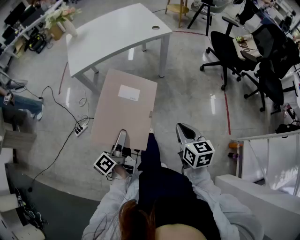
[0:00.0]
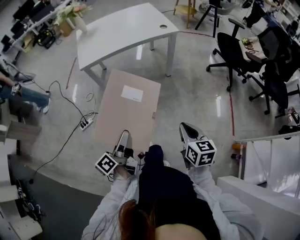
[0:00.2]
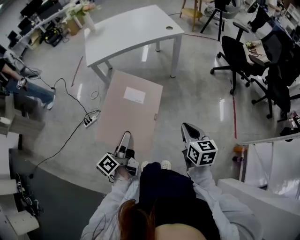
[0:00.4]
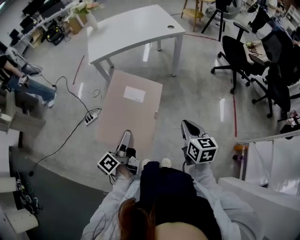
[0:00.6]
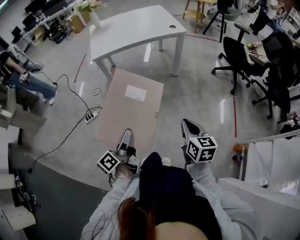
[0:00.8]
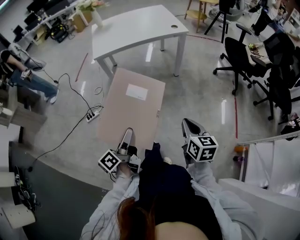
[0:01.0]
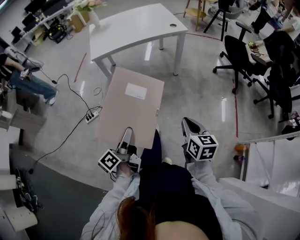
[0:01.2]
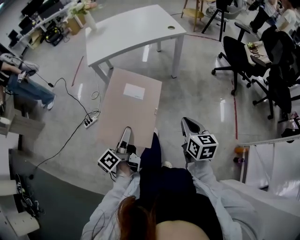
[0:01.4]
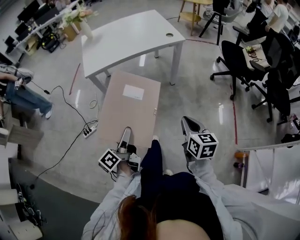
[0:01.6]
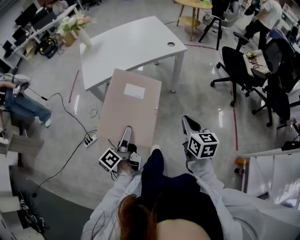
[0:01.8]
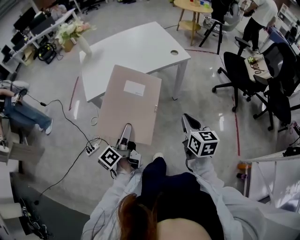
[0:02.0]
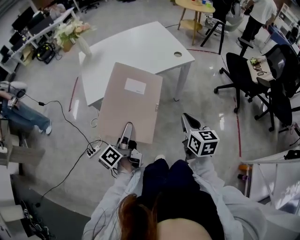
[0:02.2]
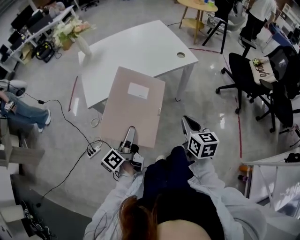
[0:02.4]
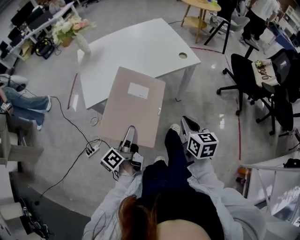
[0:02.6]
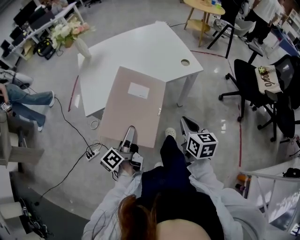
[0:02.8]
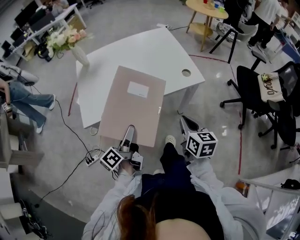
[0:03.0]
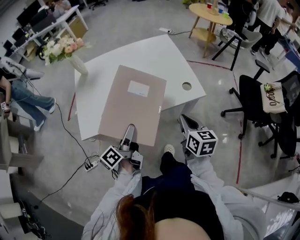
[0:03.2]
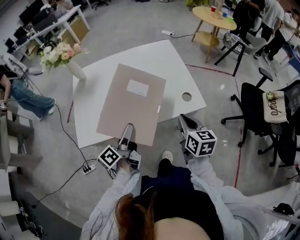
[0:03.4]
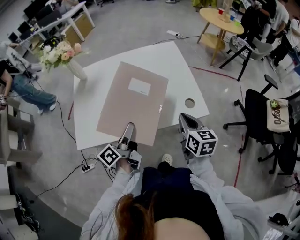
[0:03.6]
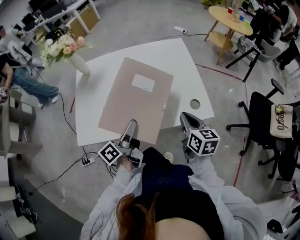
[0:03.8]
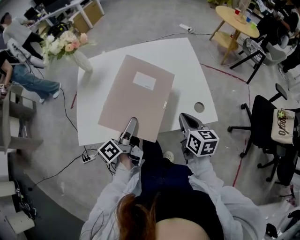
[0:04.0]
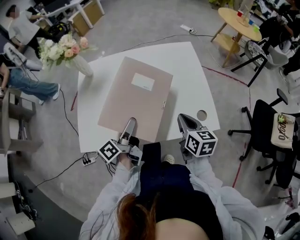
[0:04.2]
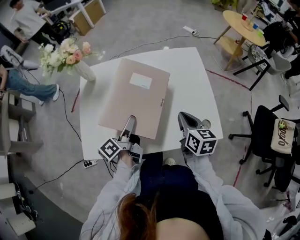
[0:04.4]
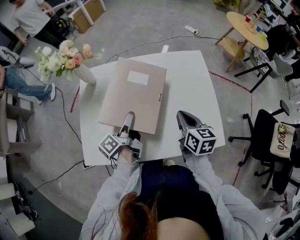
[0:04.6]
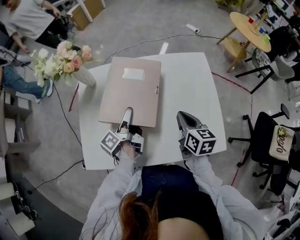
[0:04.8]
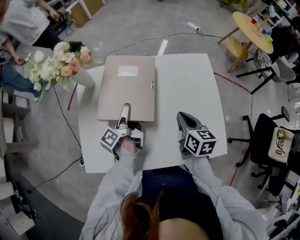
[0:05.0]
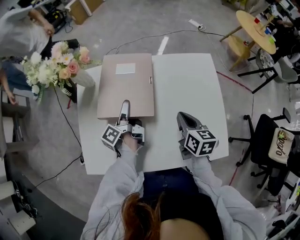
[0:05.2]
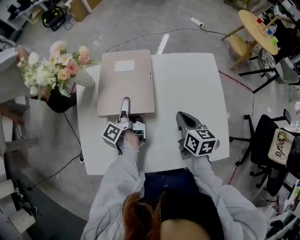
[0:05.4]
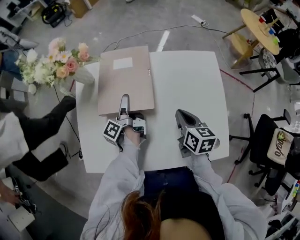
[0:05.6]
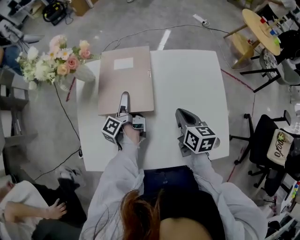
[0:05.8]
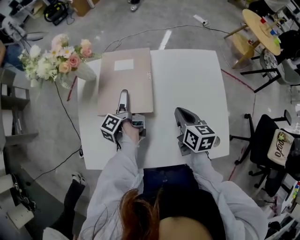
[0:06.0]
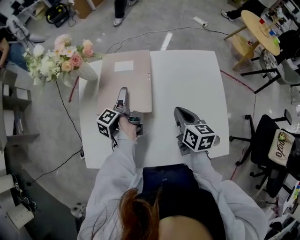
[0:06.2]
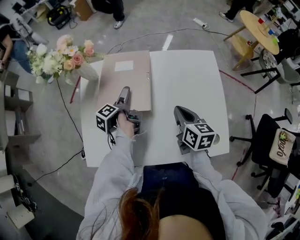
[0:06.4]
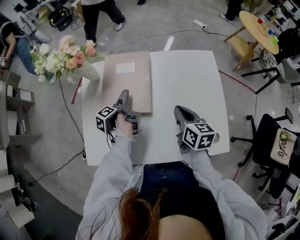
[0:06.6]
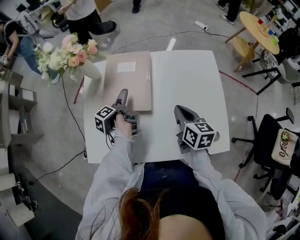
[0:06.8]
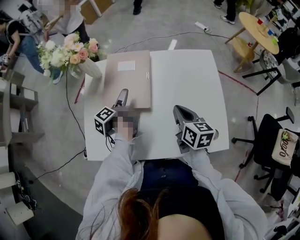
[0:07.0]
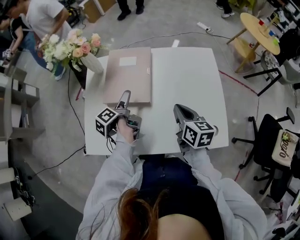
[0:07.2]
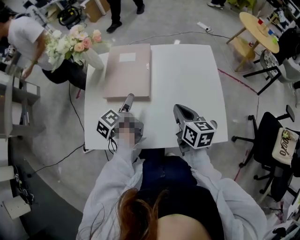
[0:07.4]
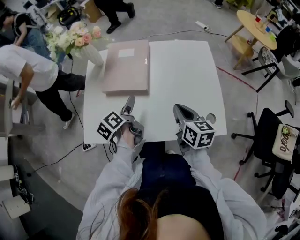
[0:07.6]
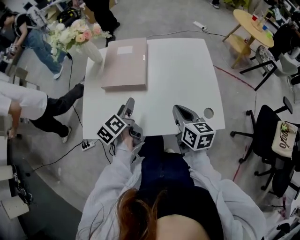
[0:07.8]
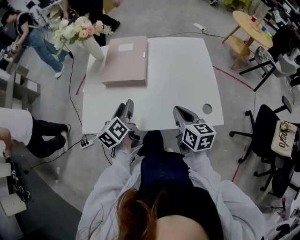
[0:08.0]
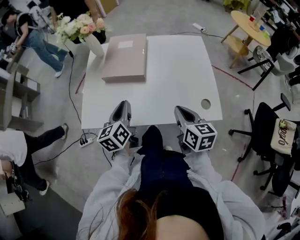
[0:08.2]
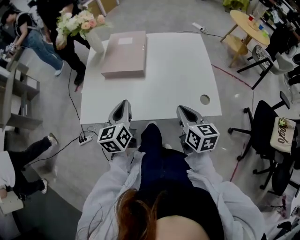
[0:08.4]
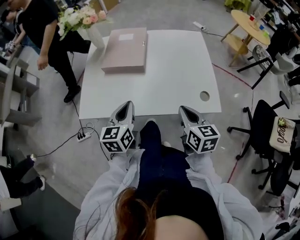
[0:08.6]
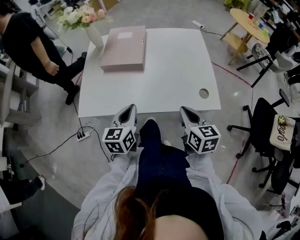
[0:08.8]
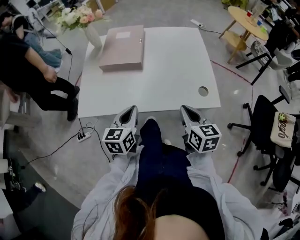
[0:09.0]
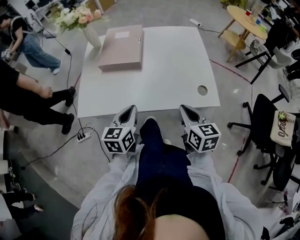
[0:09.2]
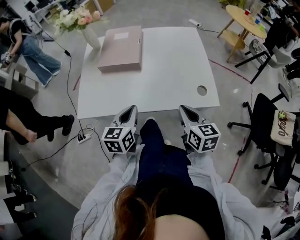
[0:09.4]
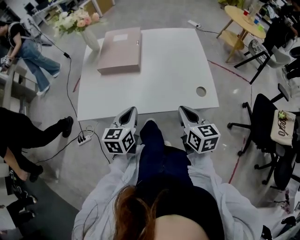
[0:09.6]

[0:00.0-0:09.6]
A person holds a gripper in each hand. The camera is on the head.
0:00.0 to 0:01.6: The right gripper reaches roughly 10 cm backward, then returns. Meanwhile the left gripper travels backward and back again, approximately 15 cm each way.
0:01.6 to 0:03.2: The two grippers travel together, forward, roughly 50 cm.
0:03.2 to 0:04.8: The grippers both shift forward by approximately 35 cm. The left gripper rotates about 20 degrees.
0:04.8 to 0:06.4: The right gripper shifts by approximately 5 cm; the left gripper heads forward and downward, covering about 10 cm, changes its angle by roughly 30 degrees, and opens its fingers.
0:06.4 to 0:08.0: The left gripper moves backward and upward, about 25 cm, rolls clockwise, seen from behind, by some 50 degrees, and closes, while the right gripper shifts roughly 20 cm backward.
0:08.0 to 0:09.6: The right gripper heads backward, covering some 10 cm. The left gripper goes about 15 cm backward and to the right, changes its angle by about 30 degrees, and closes.

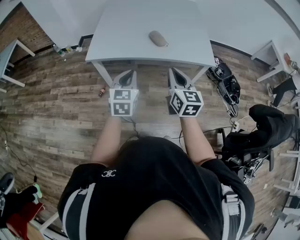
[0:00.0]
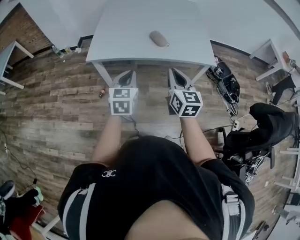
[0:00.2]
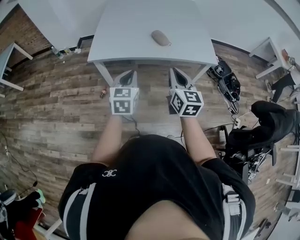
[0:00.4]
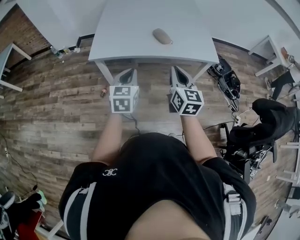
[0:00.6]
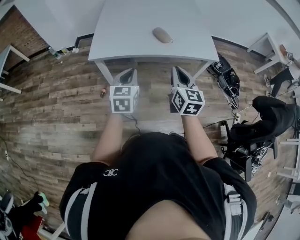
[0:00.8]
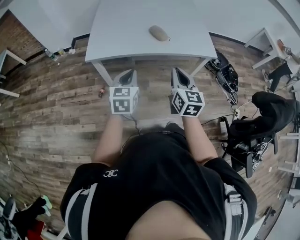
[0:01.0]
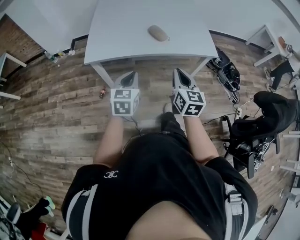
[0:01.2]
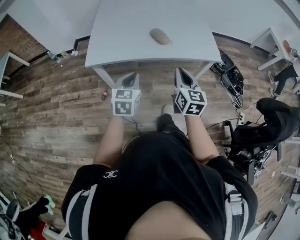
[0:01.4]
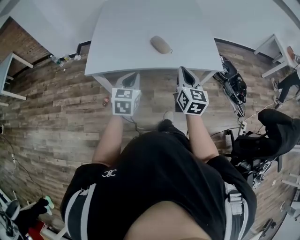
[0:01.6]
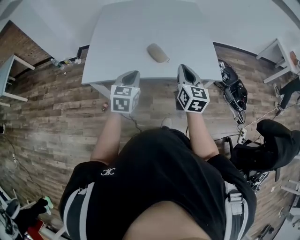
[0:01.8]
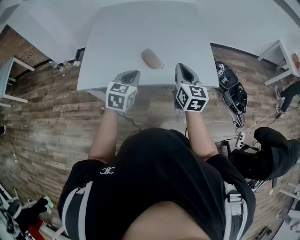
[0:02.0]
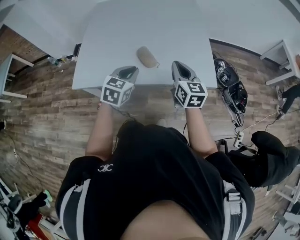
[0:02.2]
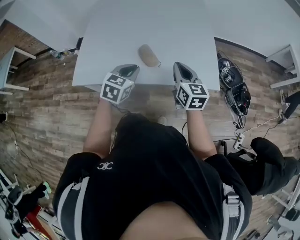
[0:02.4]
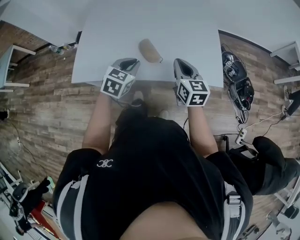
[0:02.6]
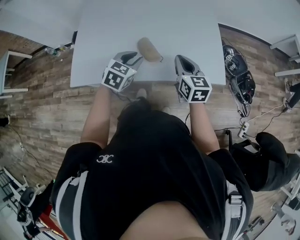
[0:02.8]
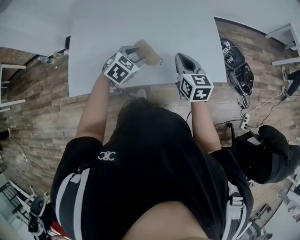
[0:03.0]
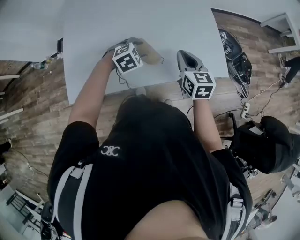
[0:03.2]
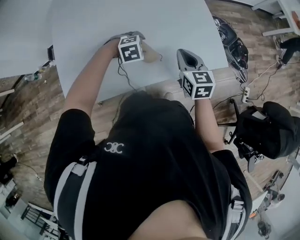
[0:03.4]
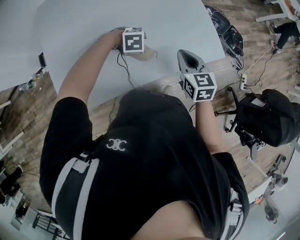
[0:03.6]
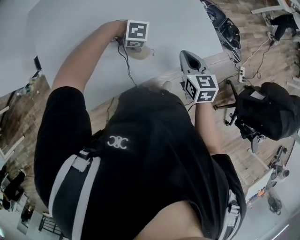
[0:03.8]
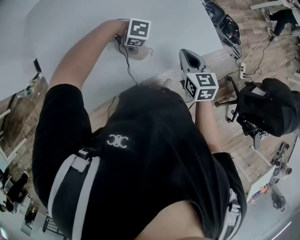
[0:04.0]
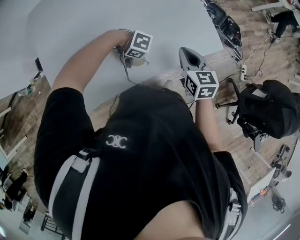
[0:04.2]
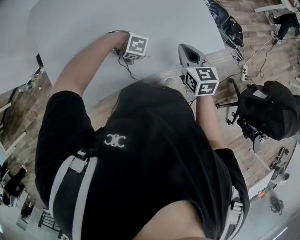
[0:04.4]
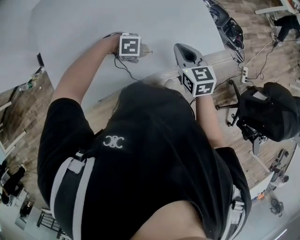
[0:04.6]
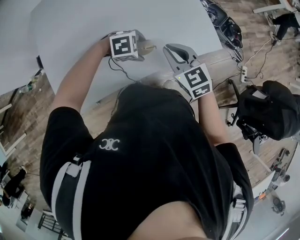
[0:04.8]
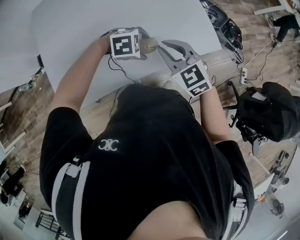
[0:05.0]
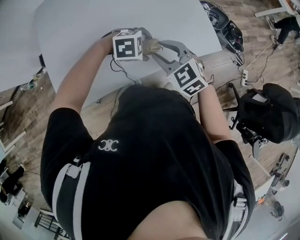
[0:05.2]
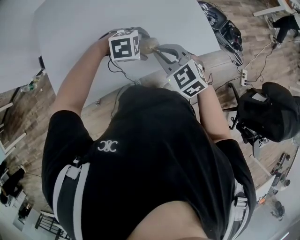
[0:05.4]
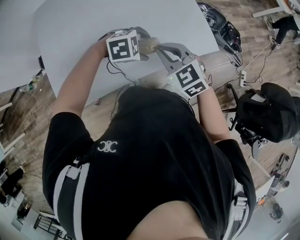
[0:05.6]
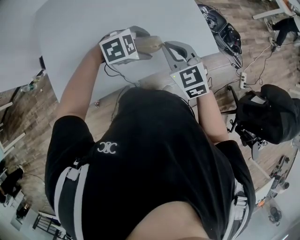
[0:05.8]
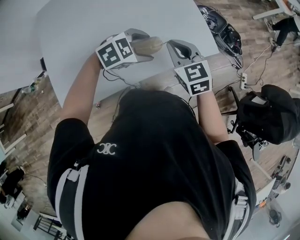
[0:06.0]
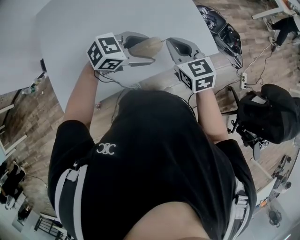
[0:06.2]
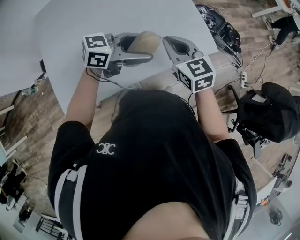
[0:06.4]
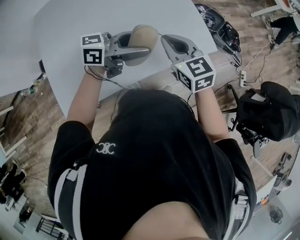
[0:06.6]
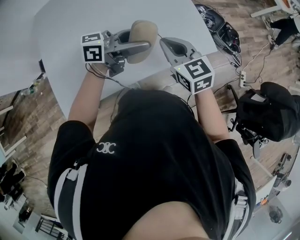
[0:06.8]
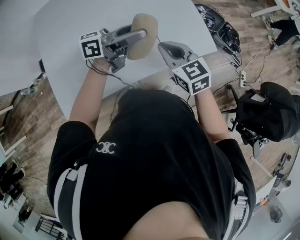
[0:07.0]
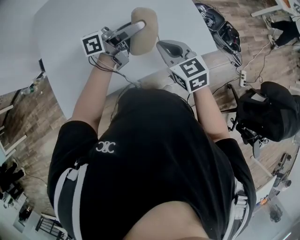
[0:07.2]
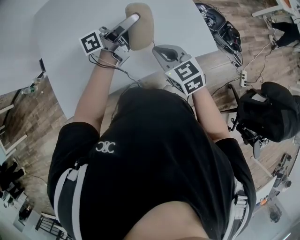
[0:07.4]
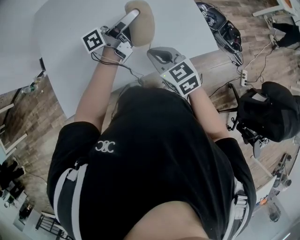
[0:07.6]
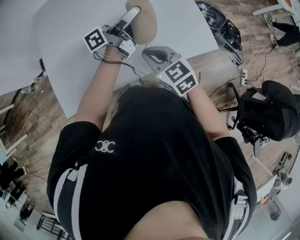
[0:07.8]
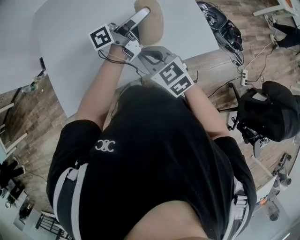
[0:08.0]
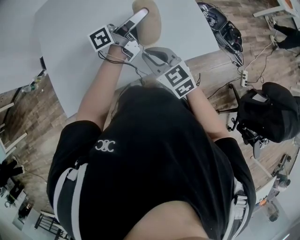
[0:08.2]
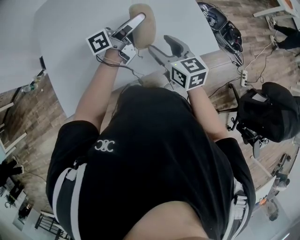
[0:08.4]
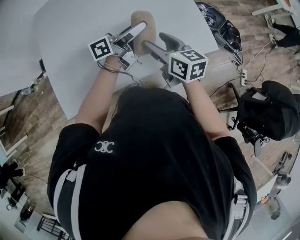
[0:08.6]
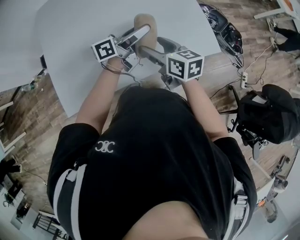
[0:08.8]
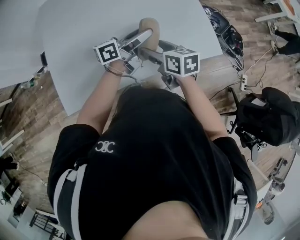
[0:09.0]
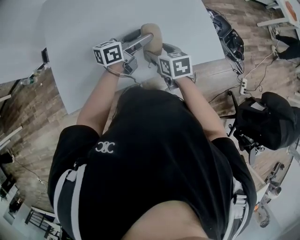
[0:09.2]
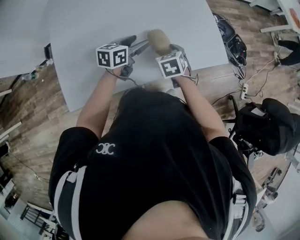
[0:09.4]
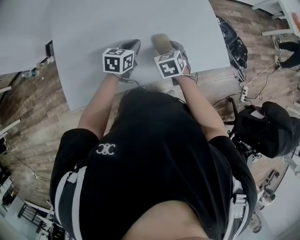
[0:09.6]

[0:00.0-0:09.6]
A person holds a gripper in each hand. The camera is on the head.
0:00.0 to 0:01.6: The grippers both shift forward by some 15 cm.
0:01.6 to 0:03.2: The two grippers go roughly 35 cm forward. The left gripper tips its fingers downward by some 40 degrees, and opens up.
0:03.2 to 0:04.8: The left gripper moves roughly 10 cm downward and comes back, changes its angle by roughly 40 degrees, and opens its fingers.
0:04.8 to 0:06.4: The left gripper travels upward by about 20 cm, and tips its fingers upward by about 50 degrees, while the right gripper shifts some 5 cm upward, and opens, then closes again.
0:06.4 to 0:08.0: The left gripper moves some 10 cm, and points its fingers approximately 30 degrees further upward, while the right gripper changes place by about 10 cm.
0:08.0 to 0:09.6: The right gripper shifts about 15 cm downward and forward, swivels about 30 degrees, and opens up; the left gripper moves downward and to the left, some 25 cm, points its fingers about 50 degrees further downward, and closes up.

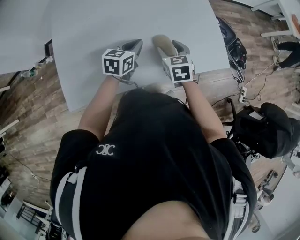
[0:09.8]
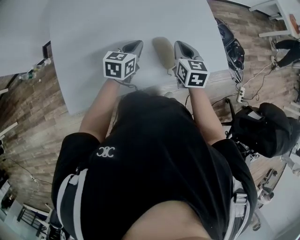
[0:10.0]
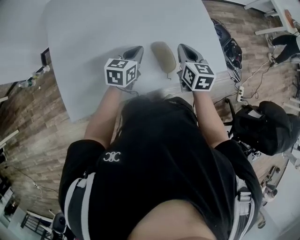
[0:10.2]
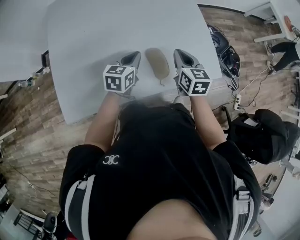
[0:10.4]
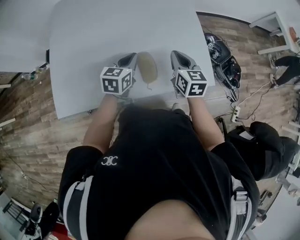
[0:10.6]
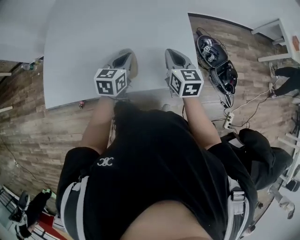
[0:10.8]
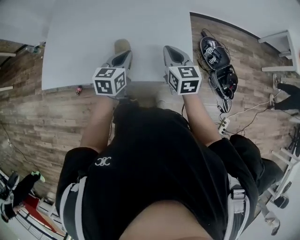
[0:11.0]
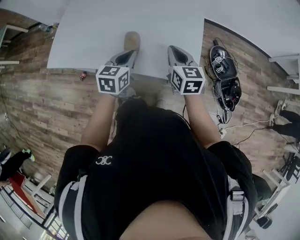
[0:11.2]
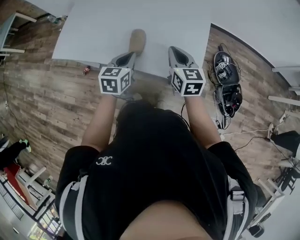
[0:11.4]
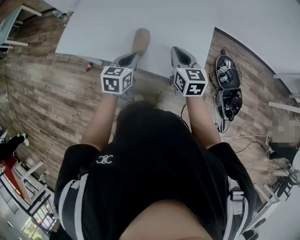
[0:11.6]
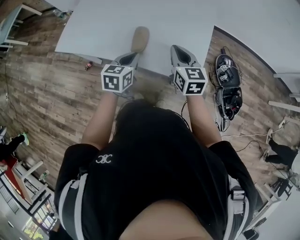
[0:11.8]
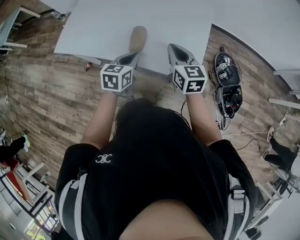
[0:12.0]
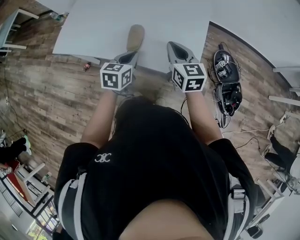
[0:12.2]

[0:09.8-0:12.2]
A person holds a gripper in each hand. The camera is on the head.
0:09.8 to 0:11.0: The right gripper moves approximately 30 cm, rotates roughly 20 degrees, and closes up, while the left gripper moves roughly 25 cm, and changes its angle by roughly 30 degrees.
0:11.0 to 0:12.2: The left gripper is displaced backward by roughly 10 cm; the right gripper changes place by approximately 5 cm.

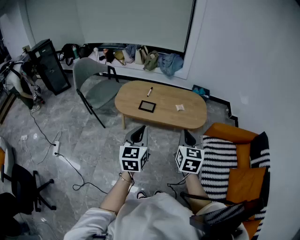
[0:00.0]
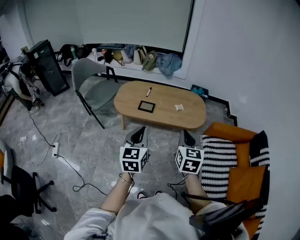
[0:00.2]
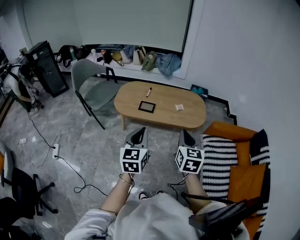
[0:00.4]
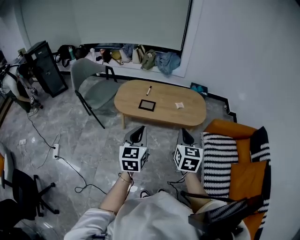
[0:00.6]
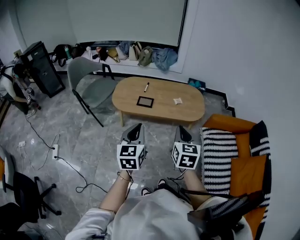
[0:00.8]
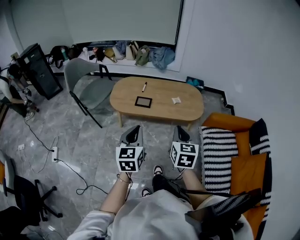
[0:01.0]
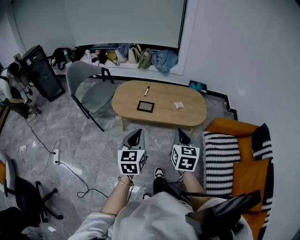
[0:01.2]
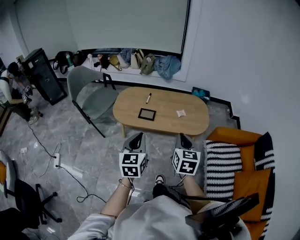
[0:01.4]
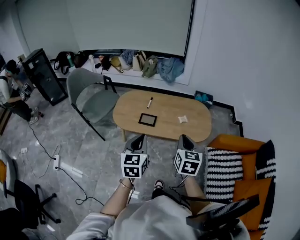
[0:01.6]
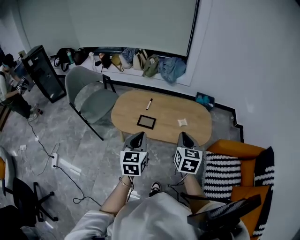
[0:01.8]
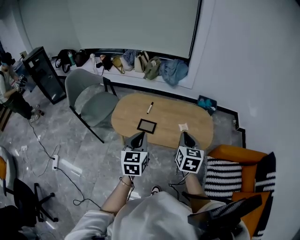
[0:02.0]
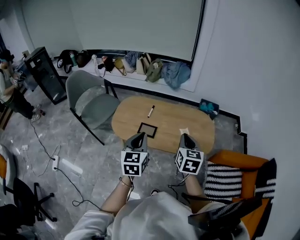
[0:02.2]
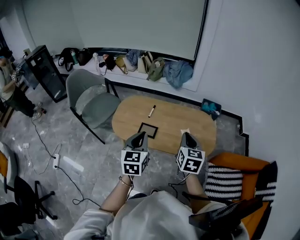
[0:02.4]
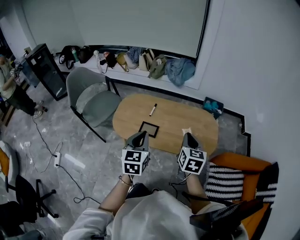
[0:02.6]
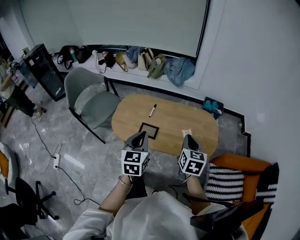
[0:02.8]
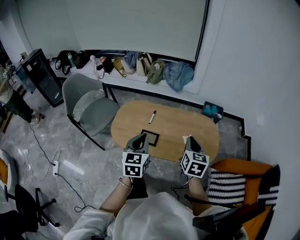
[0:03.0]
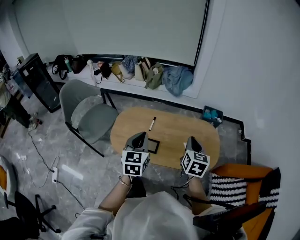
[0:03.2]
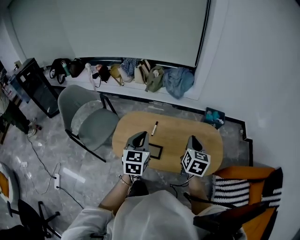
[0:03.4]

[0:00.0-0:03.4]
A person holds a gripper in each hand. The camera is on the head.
0:00.0 to 0:01.6: Both grippers move forward, roughly 15 cm.
0:01.6 to 0:03.4: The two grippers go some 35 cm forward.
